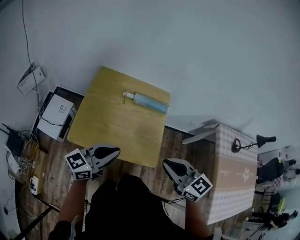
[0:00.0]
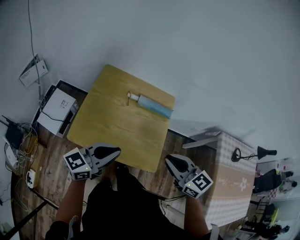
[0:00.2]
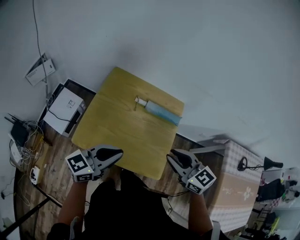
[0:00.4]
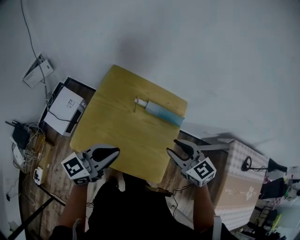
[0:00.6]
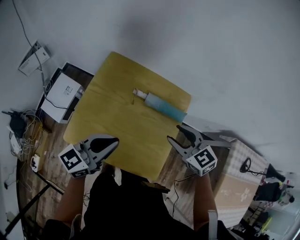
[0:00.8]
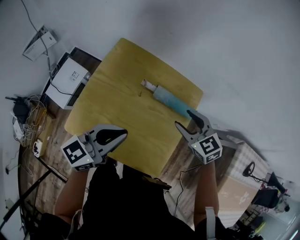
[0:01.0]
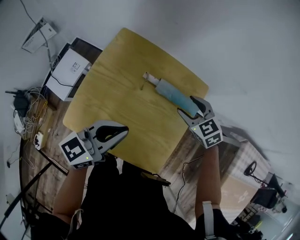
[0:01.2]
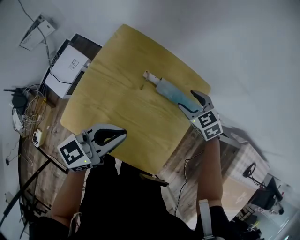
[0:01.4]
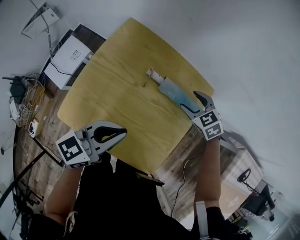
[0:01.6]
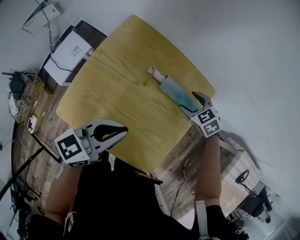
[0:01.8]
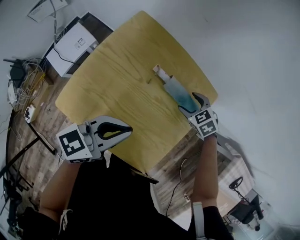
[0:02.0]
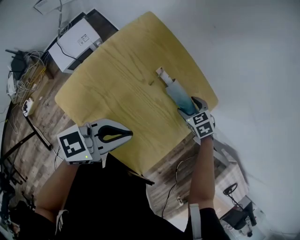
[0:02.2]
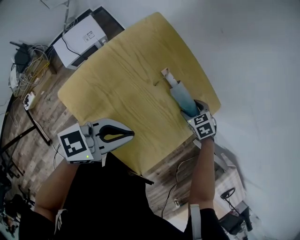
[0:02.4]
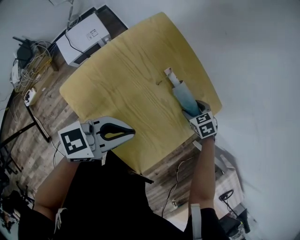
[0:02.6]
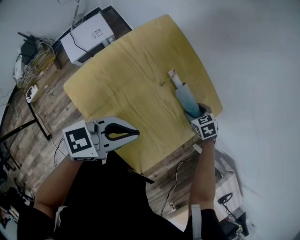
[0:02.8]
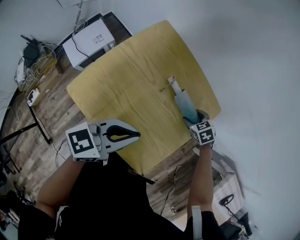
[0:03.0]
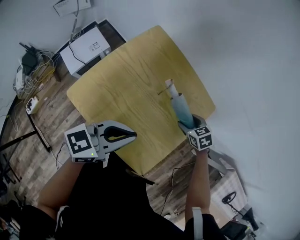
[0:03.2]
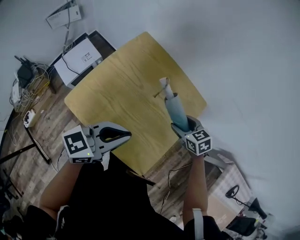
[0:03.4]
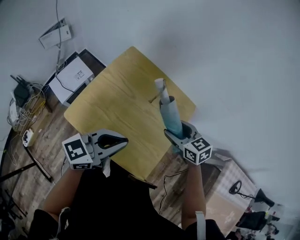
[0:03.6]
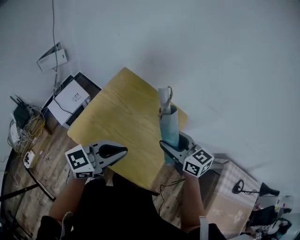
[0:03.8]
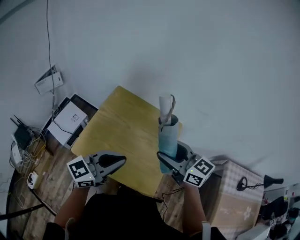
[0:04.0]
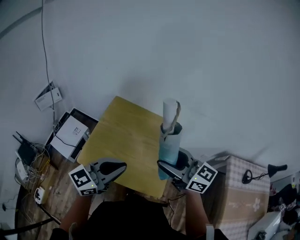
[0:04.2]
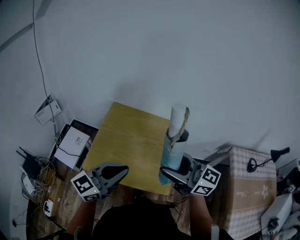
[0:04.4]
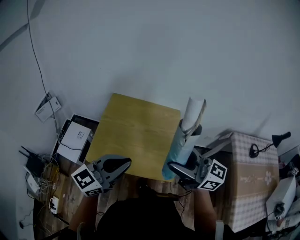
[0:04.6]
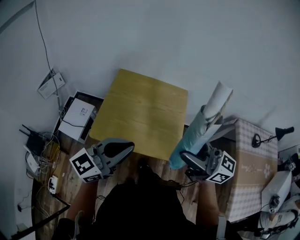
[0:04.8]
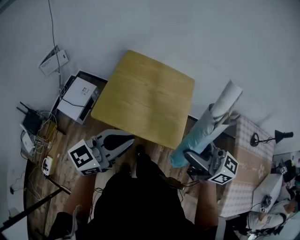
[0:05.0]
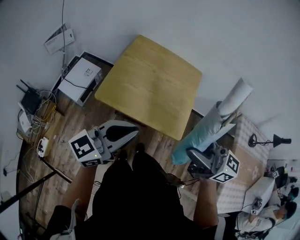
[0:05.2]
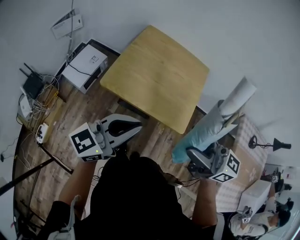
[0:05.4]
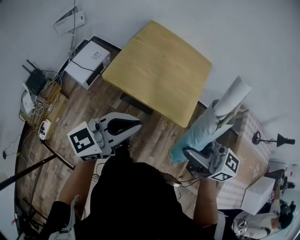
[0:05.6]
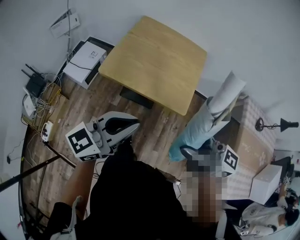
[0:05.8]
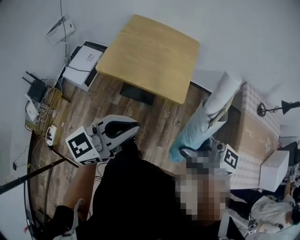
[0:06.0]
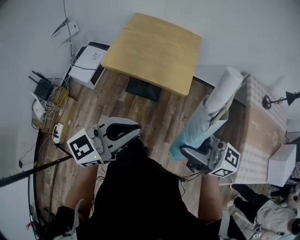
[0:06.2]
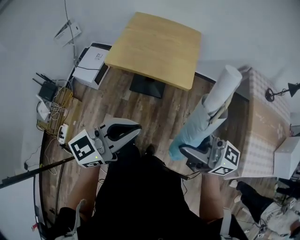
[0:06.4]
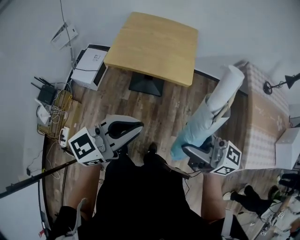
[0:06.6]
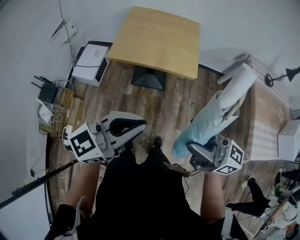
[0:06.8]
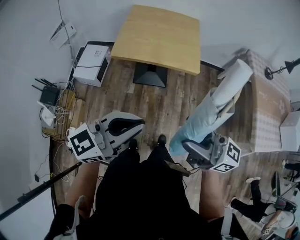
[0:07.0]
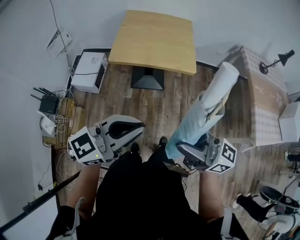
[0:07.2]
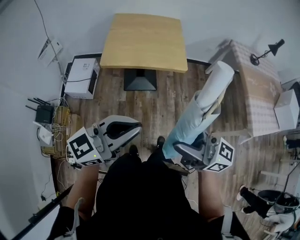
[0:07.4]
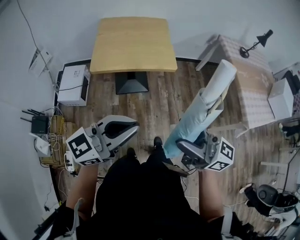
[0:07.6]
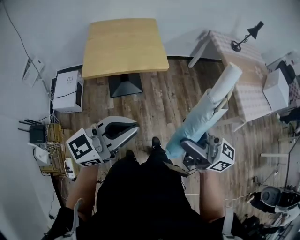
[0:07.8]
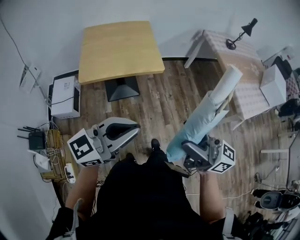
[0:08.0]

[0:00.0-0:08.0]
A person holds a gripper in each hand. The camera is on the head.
0:00.0 to 0:01.6: The right gripper heads forward and downward, covering about 50 cm, tilts its fingers roughly 40 degrees downward, and opens its fingers. Meanwhile the left gripper is displaced forward and downward by about 25 cm.
0:01.6 to 0:03.2: The right gripper moves backward and downward, approximately 10 cm. The left gripper is displaced backward by roughly 5 cm.
0:03.2 to 0:04.8: The left gripper heads backward, upward and to the left, covering roughly 25 cm, and changes its angle by approximately 30 degrees, while the right gripper is displaced upward and backward by roughly 60 cm, and points its fingers about 80 degrees further upward.
0:04.8 to 0:06.4: The two grippers go some 30 cm backward.
0:06.4 to 0:08.0: The left gripper changes place by approximately 10 cm, and turns by roughly 30 degrees, while the right gripper changes place by about 15 cm, and turns by approximately 30 degrees.

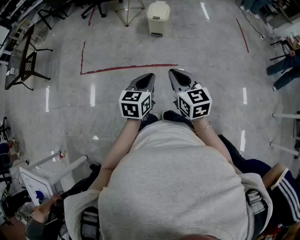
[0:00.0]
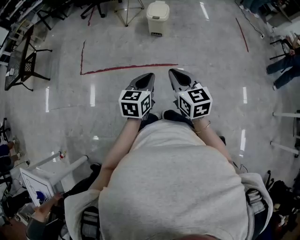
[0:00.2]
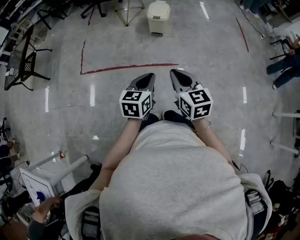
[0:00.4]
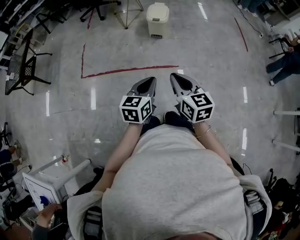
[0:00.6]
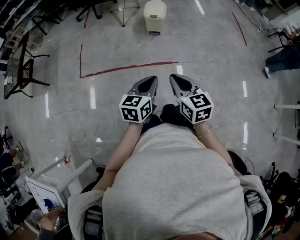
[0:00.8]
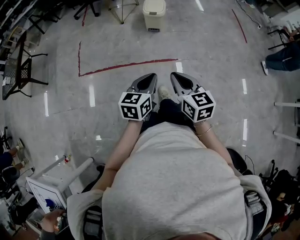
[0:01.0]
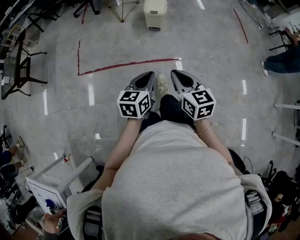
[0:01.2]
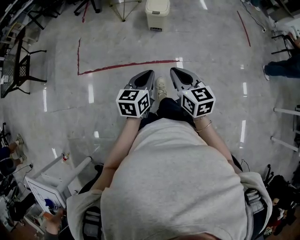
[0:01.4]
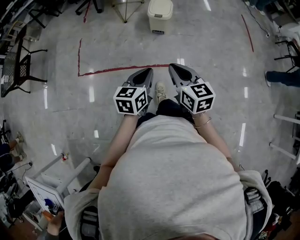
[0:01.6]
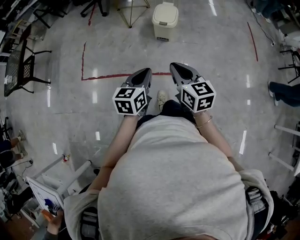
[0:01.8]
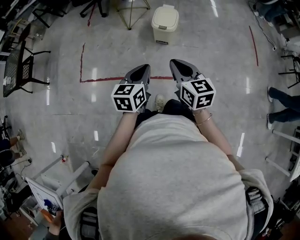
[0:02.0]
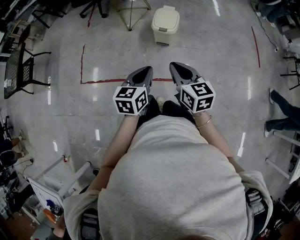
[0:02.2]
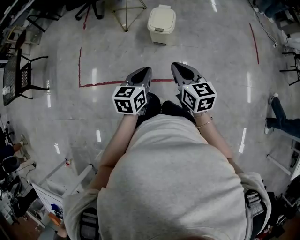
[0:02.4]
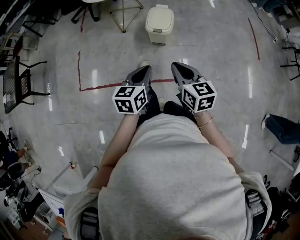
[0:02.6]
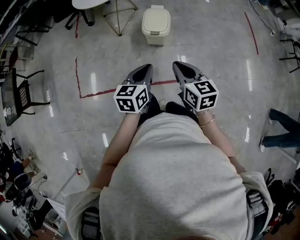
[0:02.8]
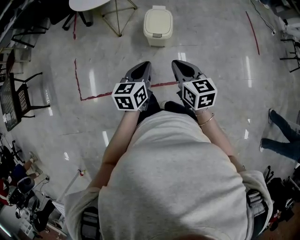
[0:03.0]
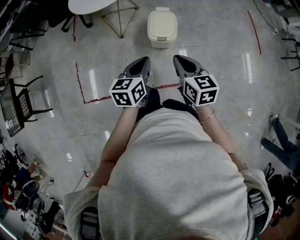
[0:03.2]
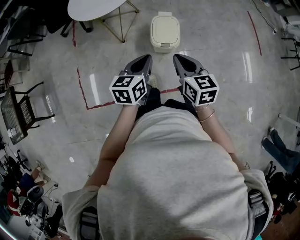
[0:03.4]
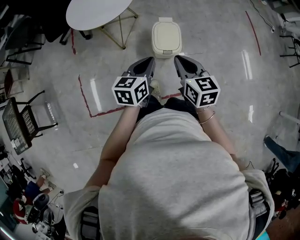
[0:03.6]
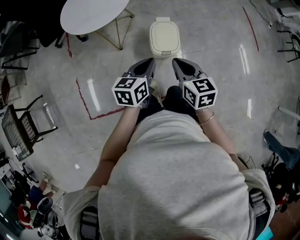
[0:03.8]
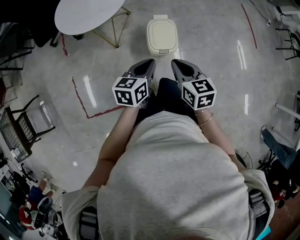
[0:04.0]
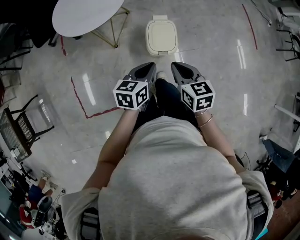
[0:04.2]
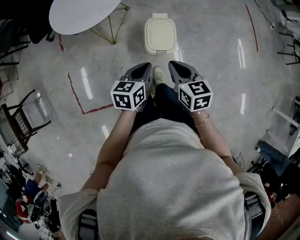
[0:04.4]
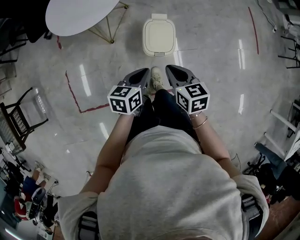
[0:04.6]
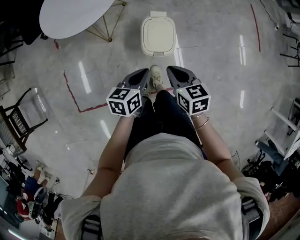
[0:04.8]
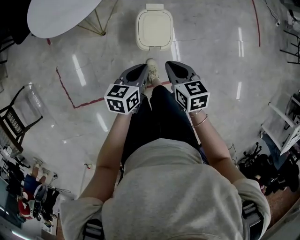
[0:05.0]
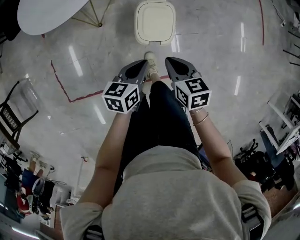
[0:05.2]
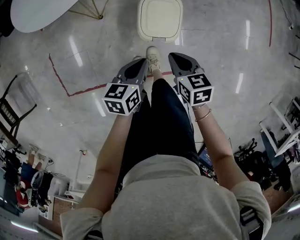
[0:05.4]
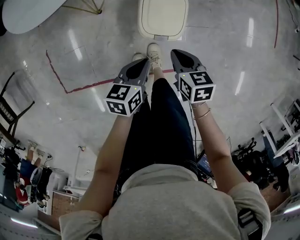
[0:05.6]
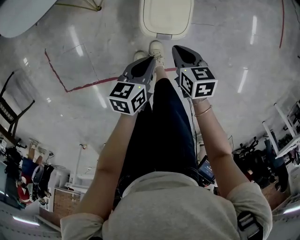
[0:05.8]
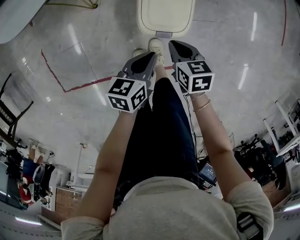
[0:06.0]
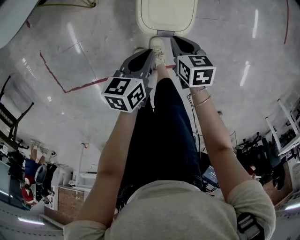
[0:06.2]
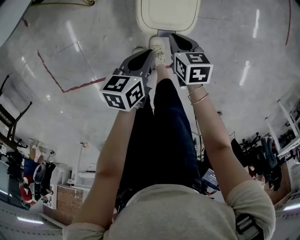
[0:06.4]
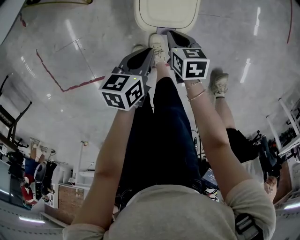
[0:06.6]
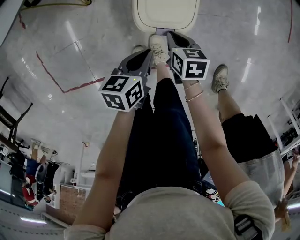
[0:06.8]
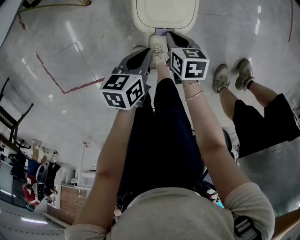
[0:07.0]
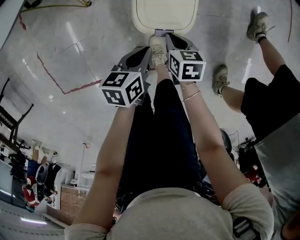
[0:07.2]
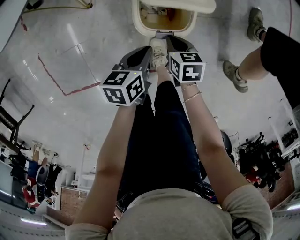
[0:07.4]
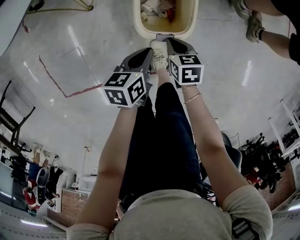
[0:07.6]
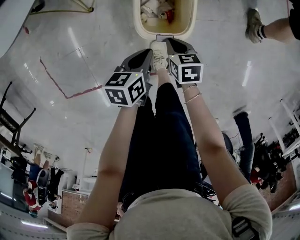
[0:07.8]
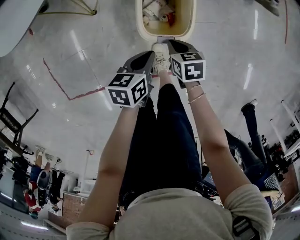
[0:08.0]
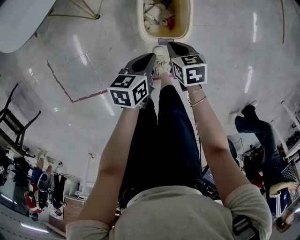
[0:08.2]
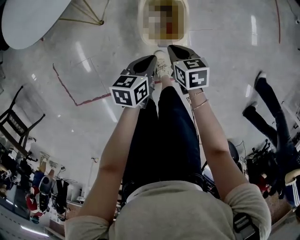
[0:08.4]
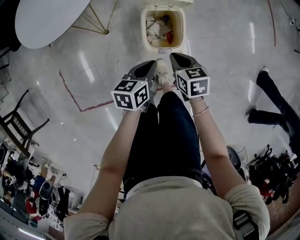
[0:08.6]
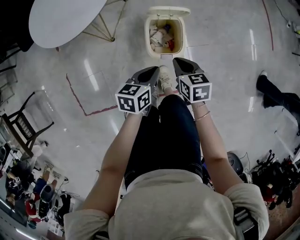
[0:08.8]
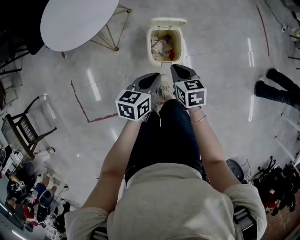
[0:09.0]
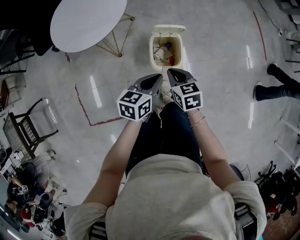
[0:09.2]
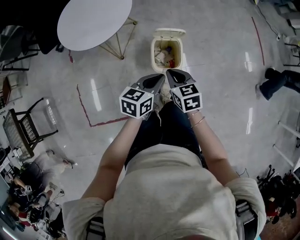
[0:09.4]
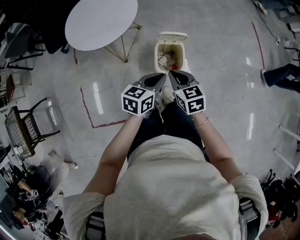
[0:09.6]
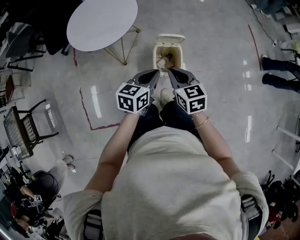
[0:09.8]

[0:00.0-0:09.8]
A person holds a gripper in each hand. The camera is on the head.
0:00.0 to 0:01.4: Both grippers move forward, roughly 5 cm.
0:01.4 to 0:02.8: The grippers both shift forward by about 35 cm.
0:02.8 to 0:04.2: The right gripper moves forward and to the left, about 25 cm, while the left gripper shifts roughly 25 cm forward.
0:04.2 to 0:05.6: Both grippers move downward, roughly 20 cm.
0:05.6 to 0:07.0: Both grippers move downward, approximately 15 cm.
0:07.0 to 0:08.4: Both grippers travel together upward, roughly 10 cm.
0:08.4 to 0:09.8: Both grippers travel together upward, approximately 30 cm. The left gripper swivels about 20 degrees; the right gripper changes its angle by some 30 degrees.

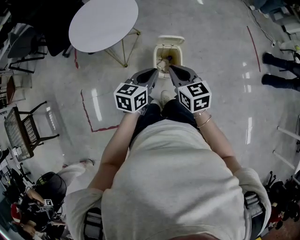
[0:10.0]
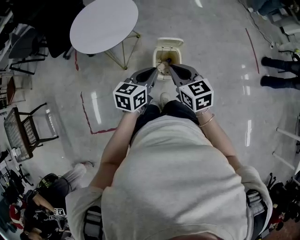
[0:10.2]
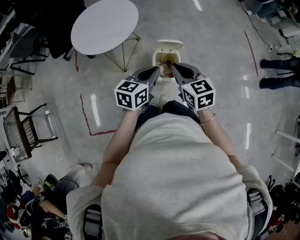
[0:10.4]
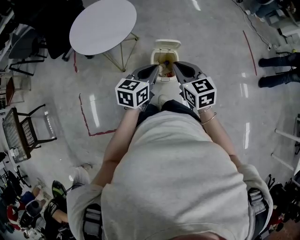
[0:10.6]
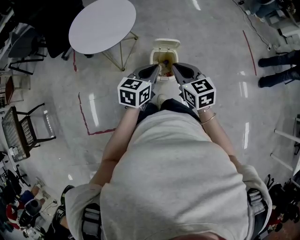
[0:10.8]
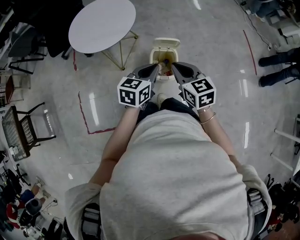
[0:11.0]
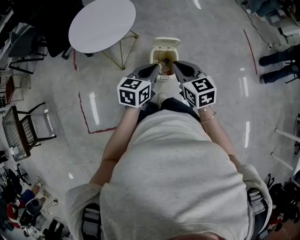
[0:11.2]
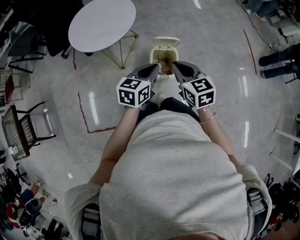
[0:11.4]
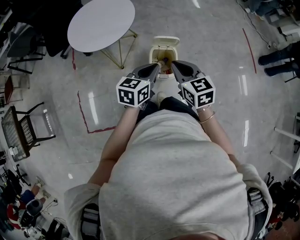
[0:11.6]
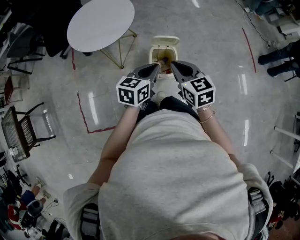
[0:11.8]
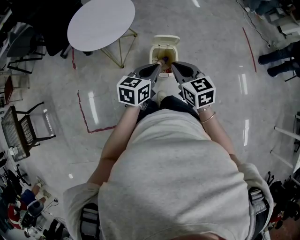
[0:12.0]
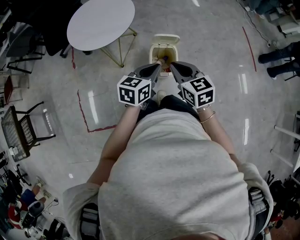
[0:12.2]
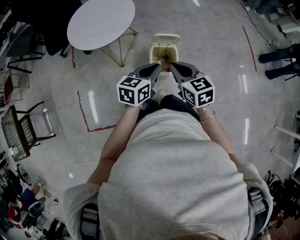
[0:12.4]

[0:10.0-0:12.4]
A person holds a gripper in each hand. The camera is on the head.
0:10.0 to 0:12.4: There are only small adjustments of the grippers.

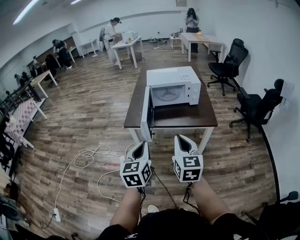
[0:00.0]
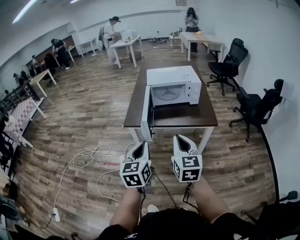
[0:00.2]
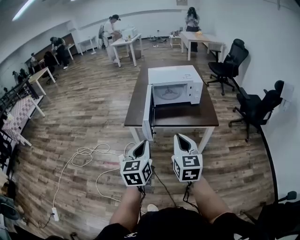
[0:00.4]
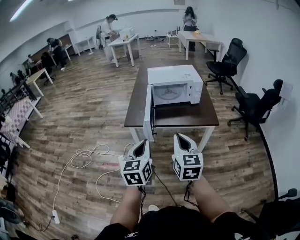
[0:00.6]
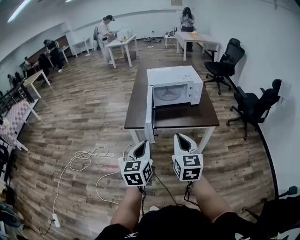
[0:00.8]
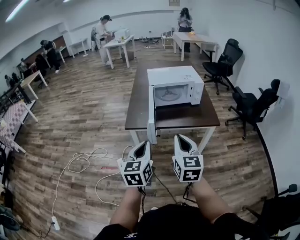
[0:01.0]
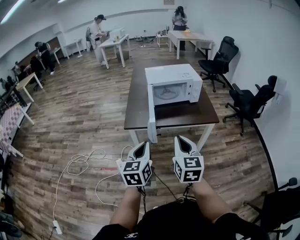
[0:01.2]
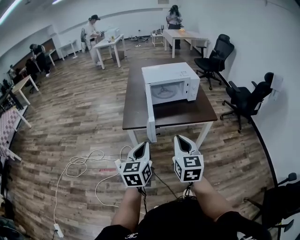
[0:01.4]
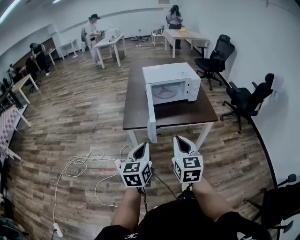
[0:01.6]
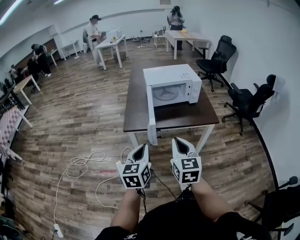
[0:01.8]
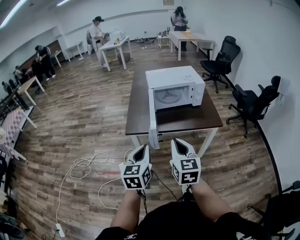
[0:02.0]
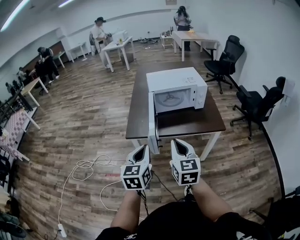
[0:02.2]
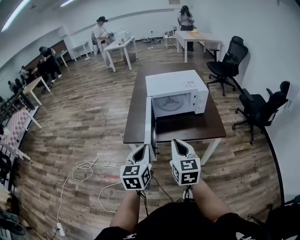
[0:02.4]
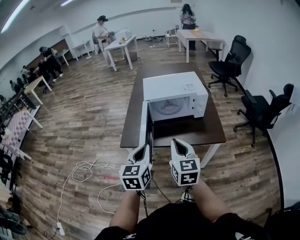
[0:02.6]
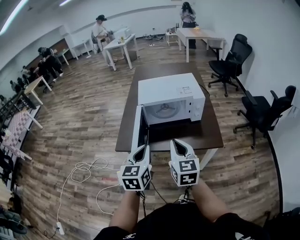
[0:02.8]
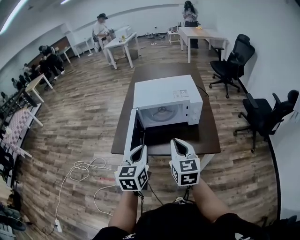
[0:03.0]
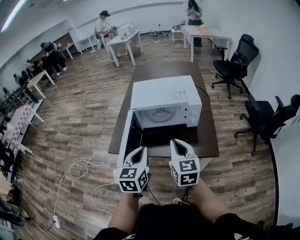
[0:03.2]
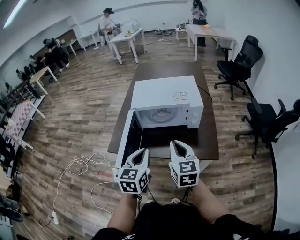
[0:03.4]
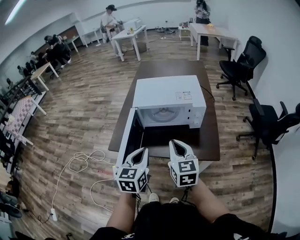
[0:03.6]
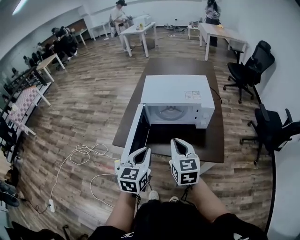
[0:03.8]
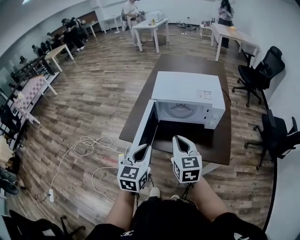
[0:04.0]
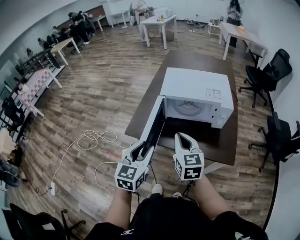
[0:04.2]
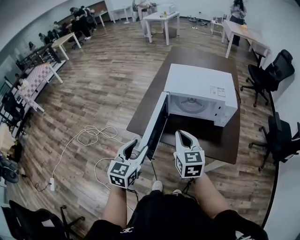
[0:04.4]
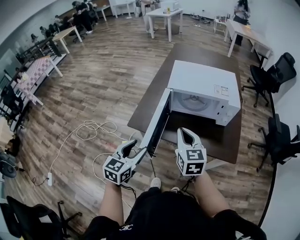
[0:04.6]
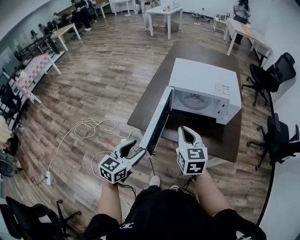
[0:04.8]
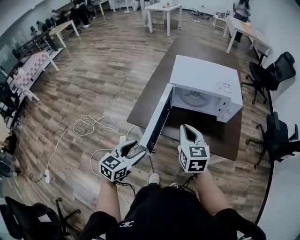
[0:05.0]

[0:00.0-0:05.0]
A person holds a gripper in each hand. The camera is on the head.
0:00.0 to 0:01.6: The two grippers go approximately 10 cm to the left.
0:01.6 to 0:03.4: The grippers both shift forward and to the right by about 30 cm.
0:03.4 to 0:05.0: The left gripper heads to the left and downward, covering some 20 cm, and opens its fingers. Meanwhile the right gripper goes roughly 15 cm to the left.
